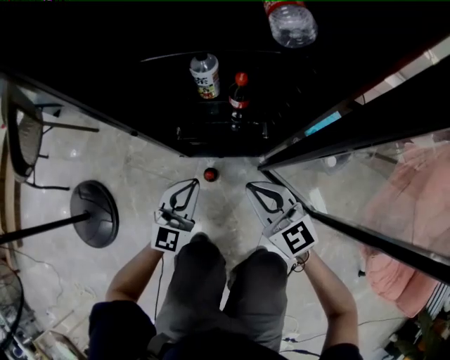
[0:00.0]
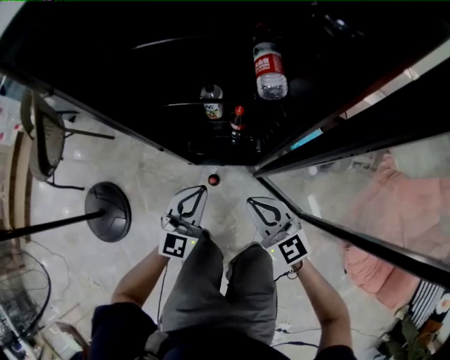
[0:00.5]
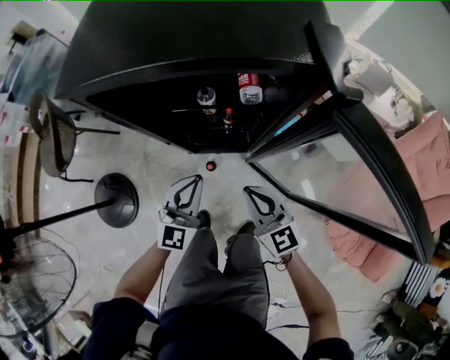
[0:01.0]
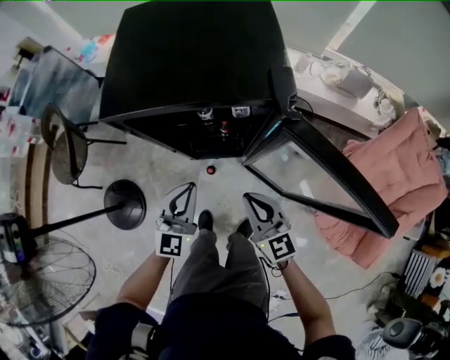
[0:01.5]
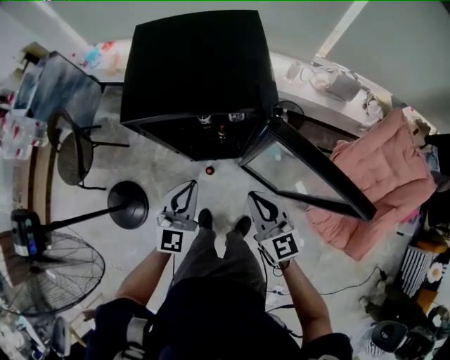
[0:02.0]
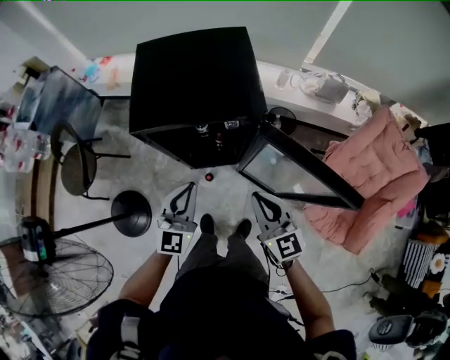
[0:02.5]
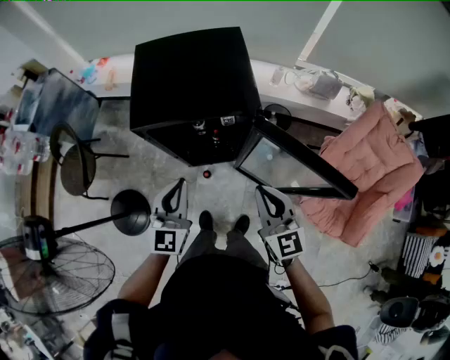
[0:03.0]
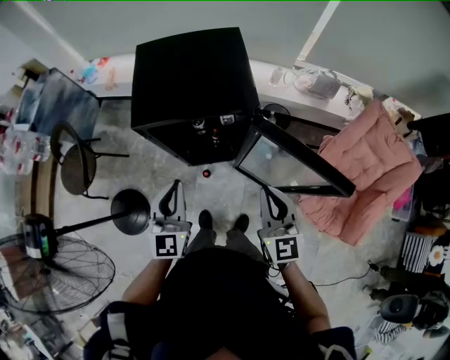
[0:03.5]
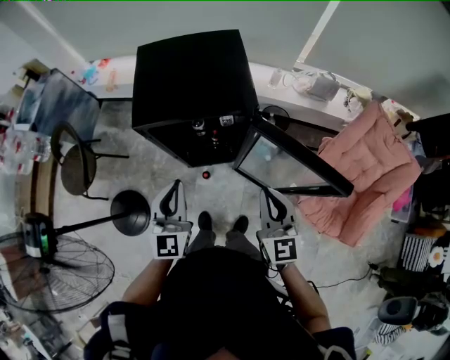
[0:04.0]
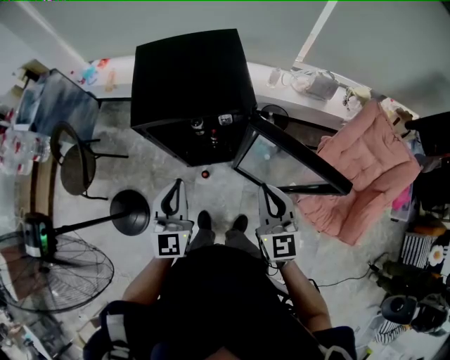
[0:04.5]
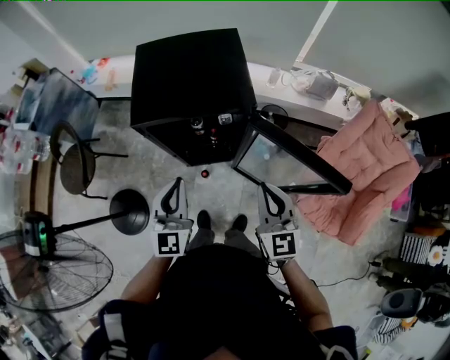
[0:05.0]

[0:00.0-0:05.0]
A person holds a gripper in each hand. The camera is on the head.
0:00.0 to 0:02.5: The grippers both shift upward by roughly 60 cm.
0:02.5 to 0:05.0: The two grippers go about 5 cm upward.

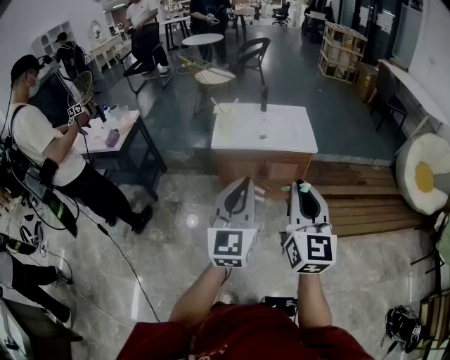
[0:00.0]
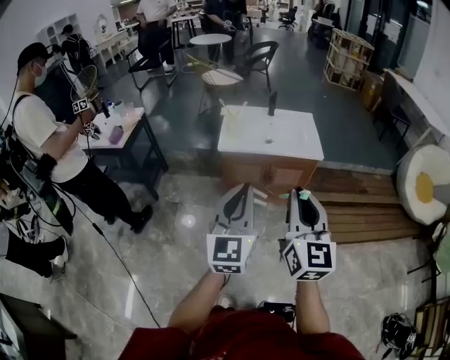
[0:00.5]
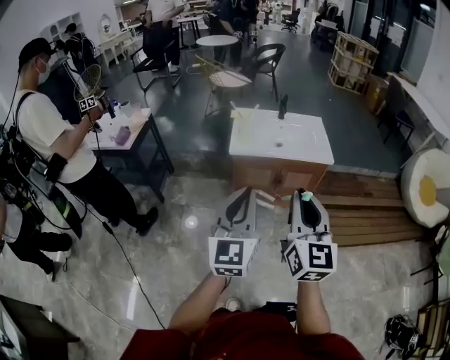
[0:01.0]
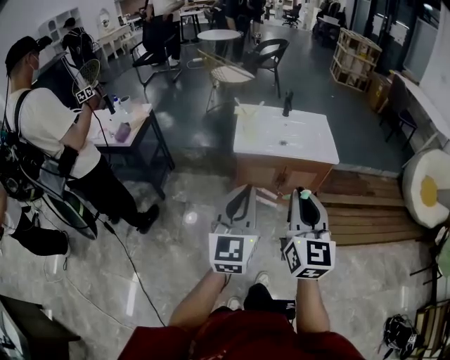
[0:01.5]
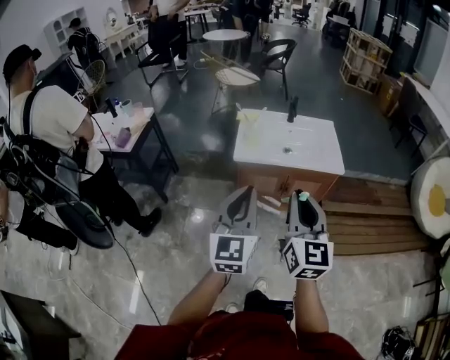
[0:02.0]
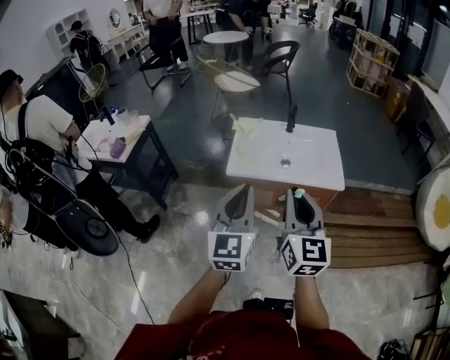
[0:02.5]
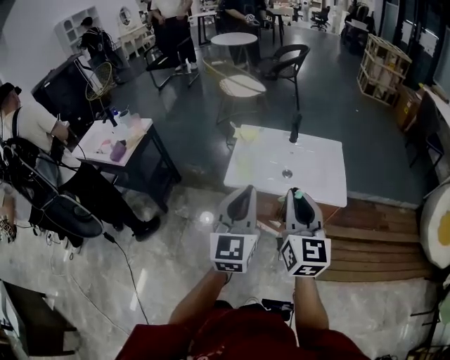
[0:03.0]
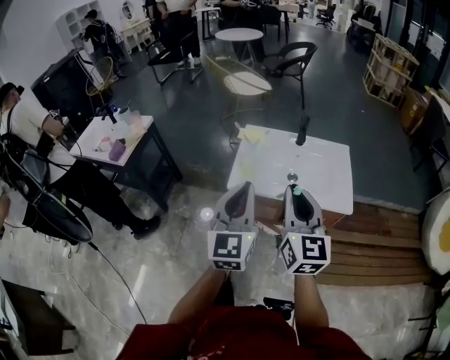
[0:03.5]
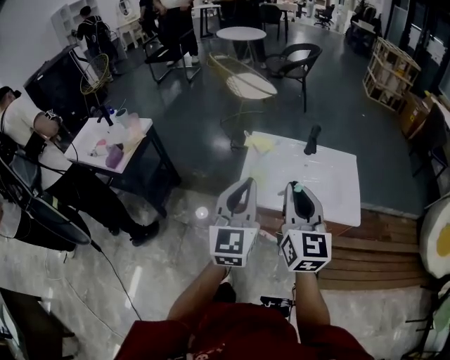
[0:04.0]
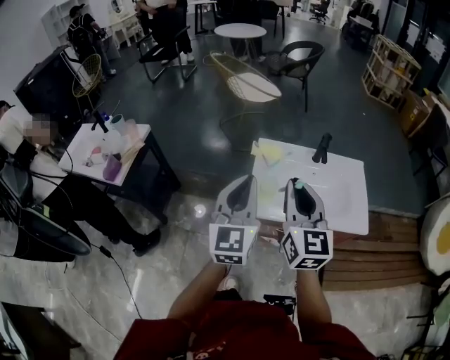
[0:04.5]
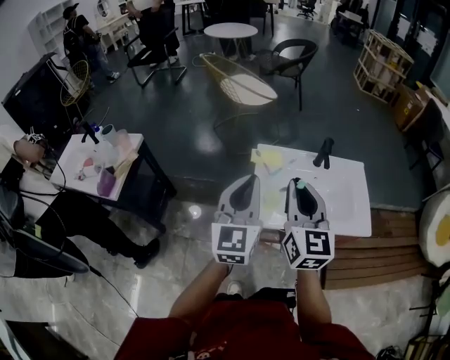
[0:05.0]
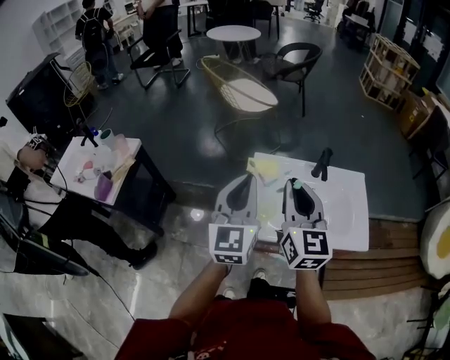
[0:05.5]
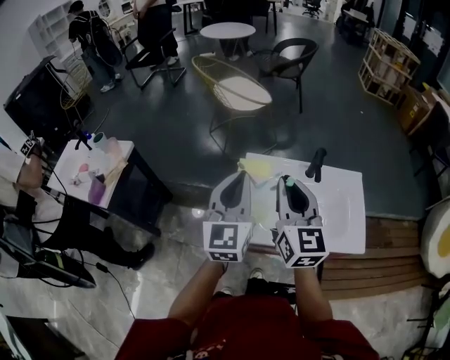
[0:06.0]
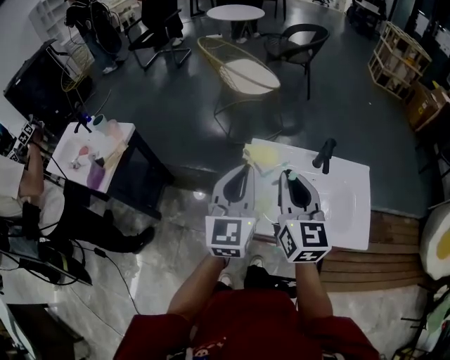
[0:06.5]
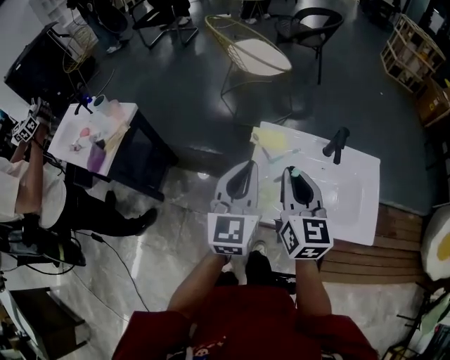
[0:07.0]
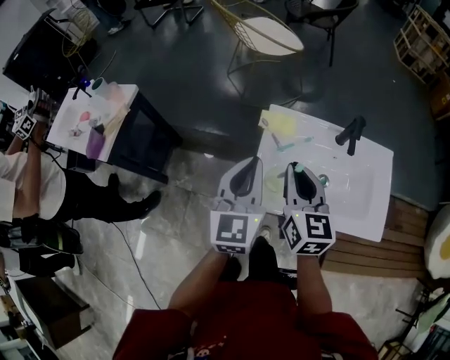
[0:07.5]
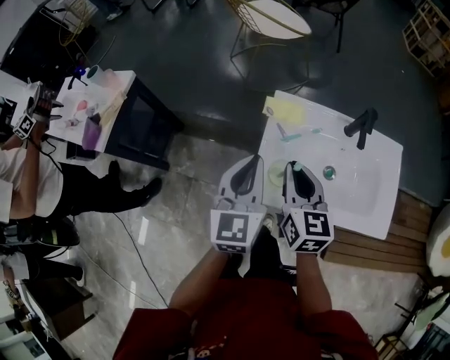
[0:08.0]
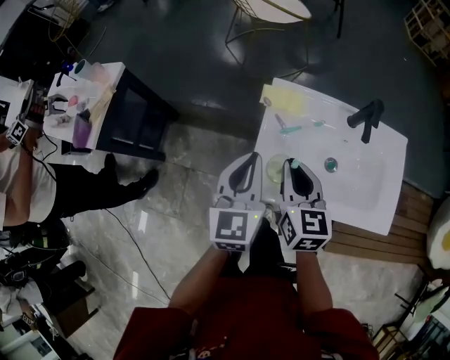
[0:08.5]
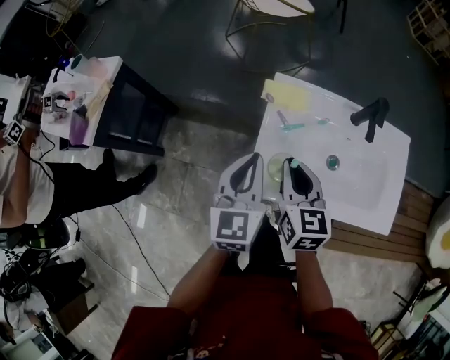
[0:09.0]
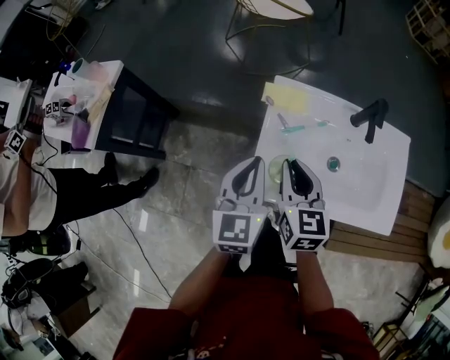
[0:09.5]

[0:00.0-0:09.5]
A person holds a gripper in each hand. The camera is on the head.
0:00.0 to 0:02.0: Both grippers travel together forward and to the left, some 15 cm.
0:02.0 to 0:04.0: The grippers both shift forward by approximately 30 cm.
0:04.0 to 0:05.5: Both grippers move forward, roughly 15 cm.
0:05.5 to 0:07.5: The left gripper shifts roughly 10 cm downward. Meanwhile the right gripper travels downward and forward by approximately 15 cm.
0:07.5 to 0:09.5: Both grippers move downward, some 10 cm.

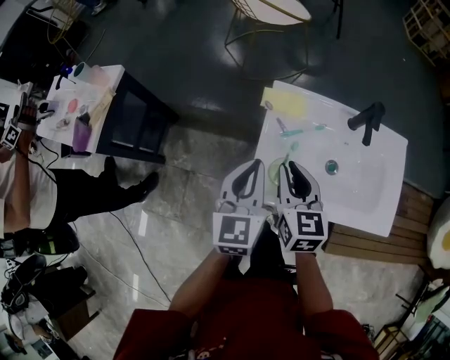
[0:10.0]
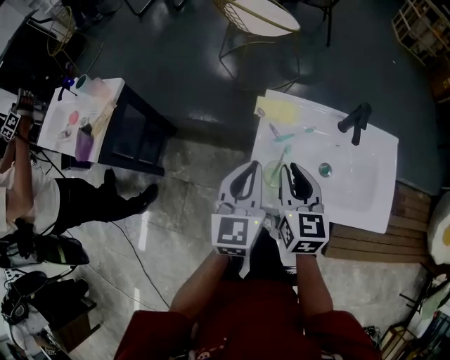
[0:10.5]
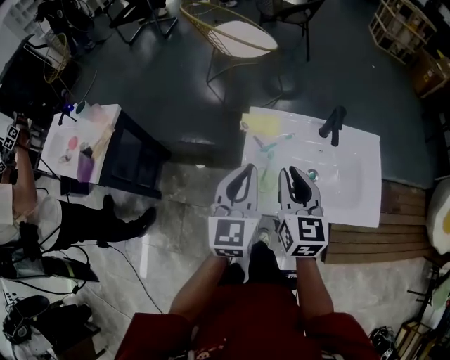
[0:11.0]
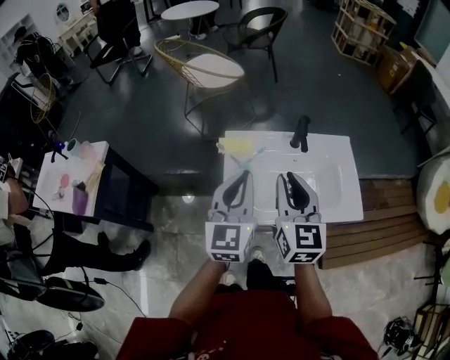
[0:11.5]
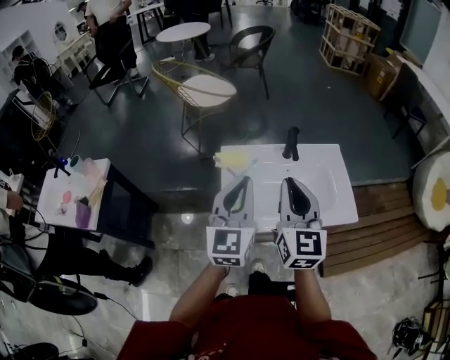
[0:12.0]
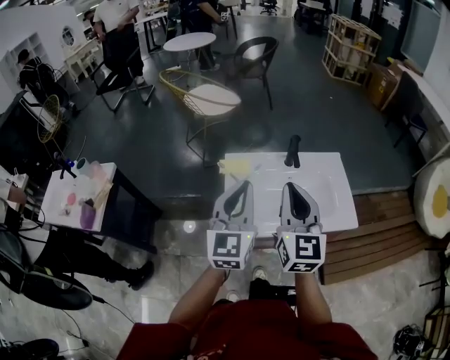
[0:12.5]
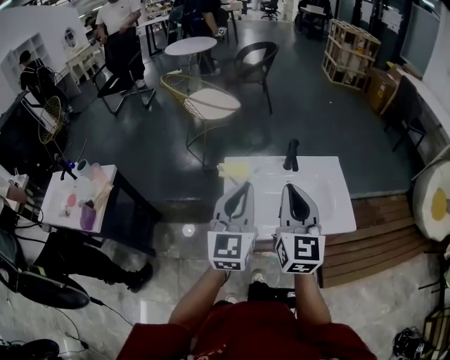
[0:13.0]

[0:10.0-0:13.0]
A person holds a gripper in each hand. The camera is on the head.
0:10.0 to 0:11.5: The two grippers go some 15 cm upward and to the right. The left gripper changes its angle by approximately 20 degrees, while the right gripper swivels some 30 degrees.
0:11.5 to 0:13.0: The grippers both shift upward by some 5 cm.

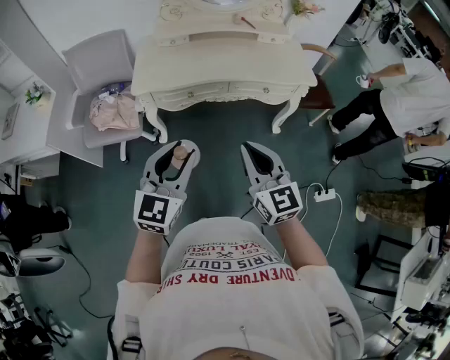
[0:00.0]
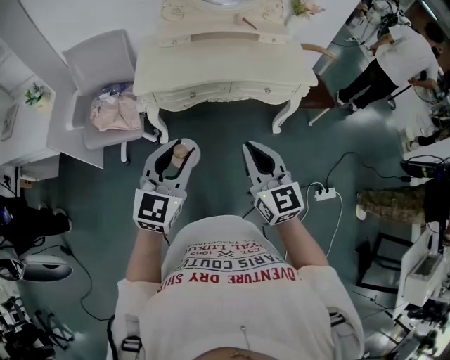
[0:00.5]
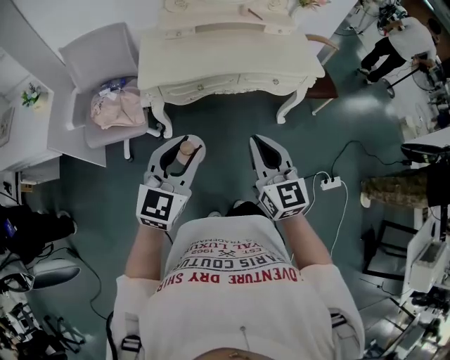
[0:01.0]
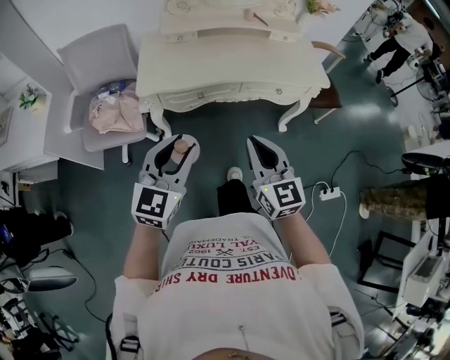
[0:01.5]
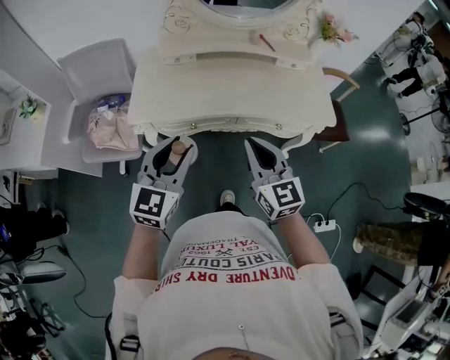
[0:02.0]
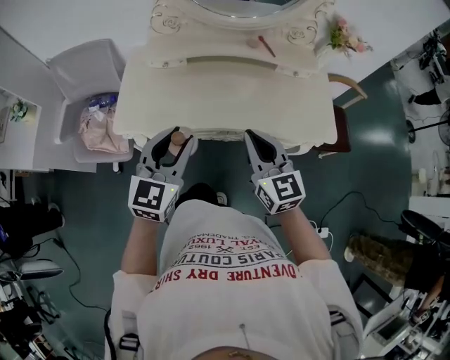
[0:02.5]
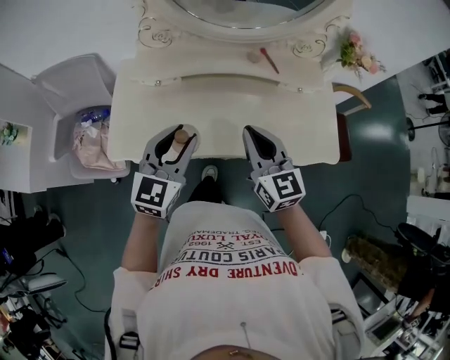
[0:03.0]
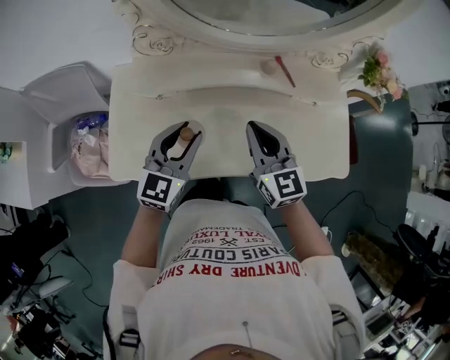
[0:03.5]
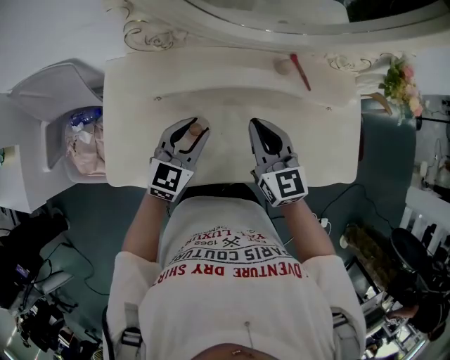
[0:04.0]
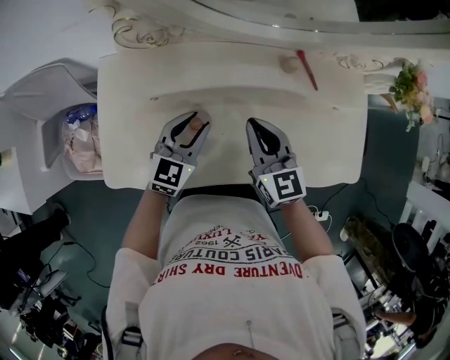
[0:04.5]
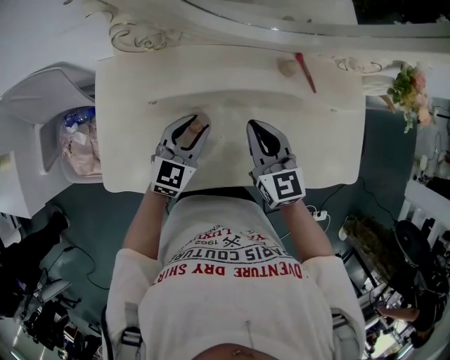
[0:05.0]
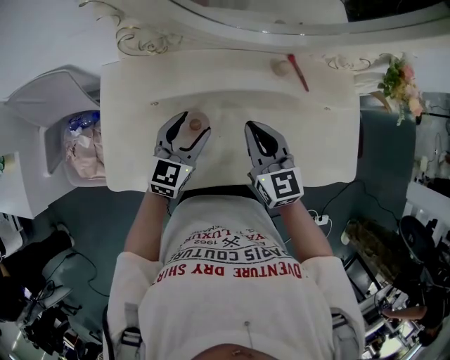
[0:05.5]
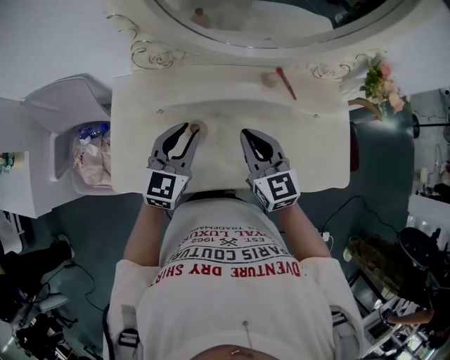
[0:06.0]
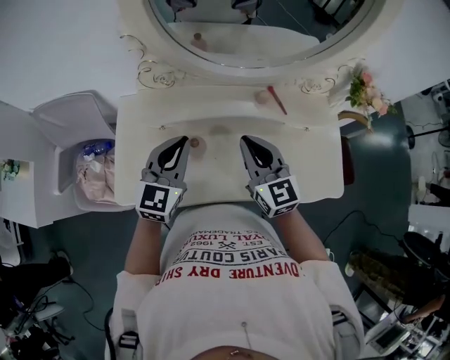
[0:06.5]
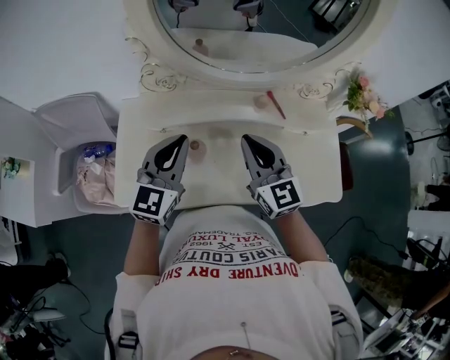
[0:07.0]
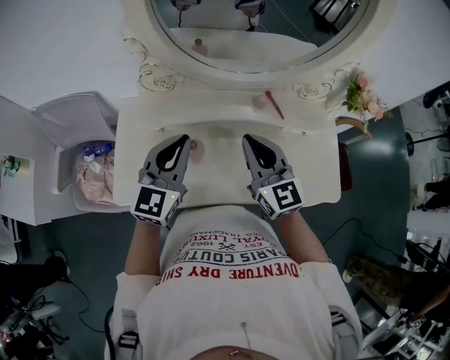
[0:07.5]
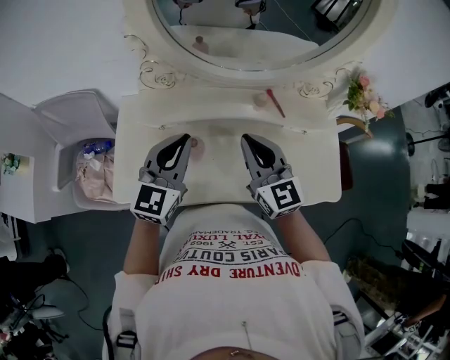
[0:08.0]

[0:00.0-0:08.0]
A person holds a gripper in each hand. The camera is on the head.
0:00.0 to 0:02.0: Both grippers travel together forward, about 25 cm.
0:02.0 to 0:04.0: The two grippers travel together, forward, roughly 40 cm. The left gripper shifts some 20 cm downward.
0:04.0 to 0:06.0: The left gripper shifts roughly 10 cm upward, and opens, then closes again.
0:06.0 to 0:08.0: Both grippers move upward, about 10 cm. The left gripper closes its fingers.

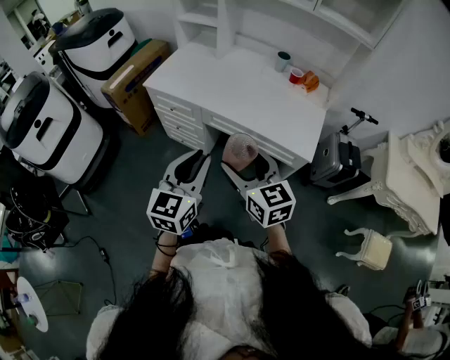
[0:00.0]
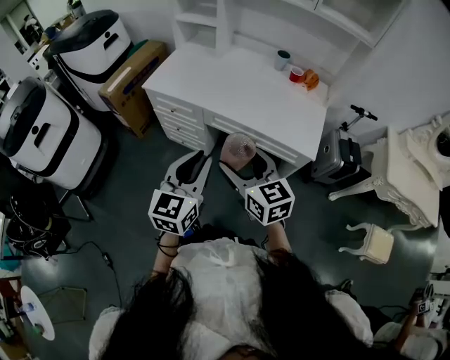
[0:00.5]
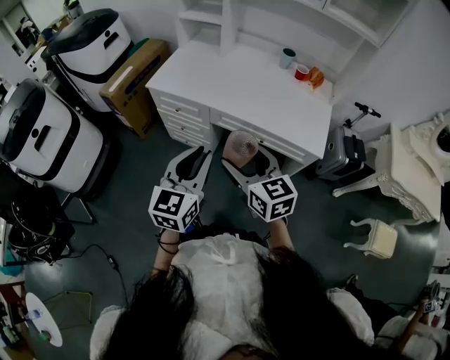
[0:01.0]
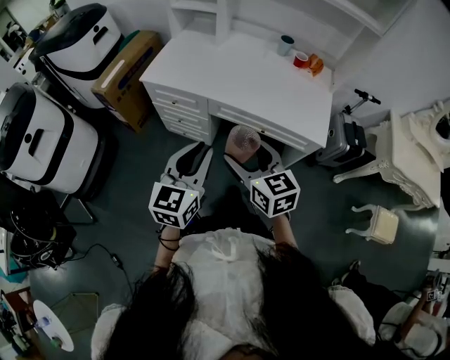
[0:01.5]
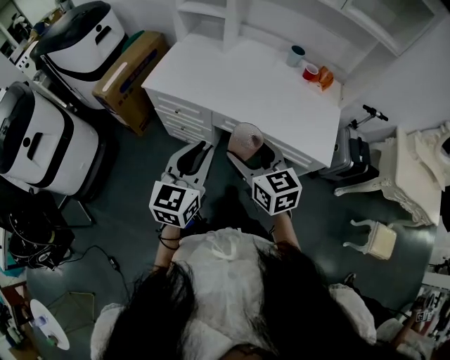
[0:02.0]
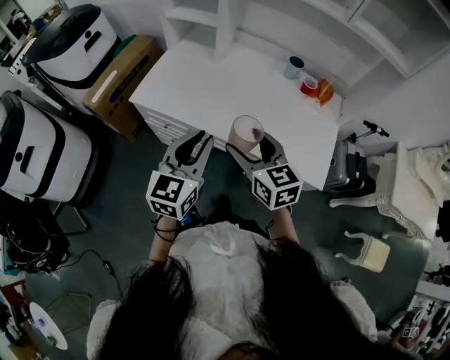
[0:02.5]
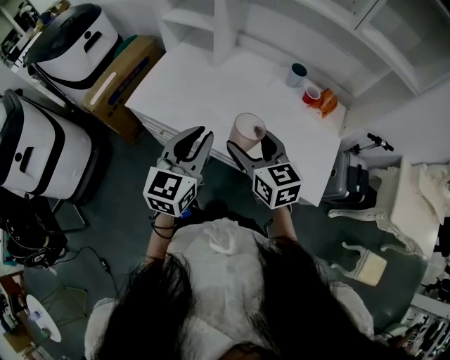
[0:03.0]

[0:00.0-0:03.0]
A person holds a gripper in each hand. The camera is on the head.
0:00.0 to 0:01.5: The grippers both shift to the left by roughly 10 cm.
0:01.5 to 0:03.0: The two grippers go approximately 25 cm forward.
